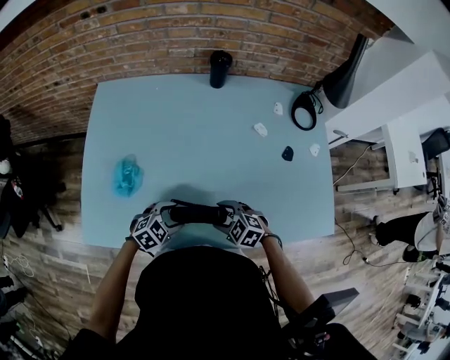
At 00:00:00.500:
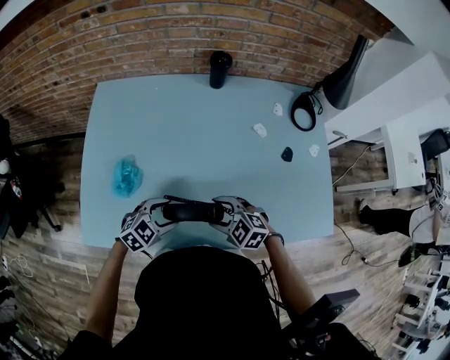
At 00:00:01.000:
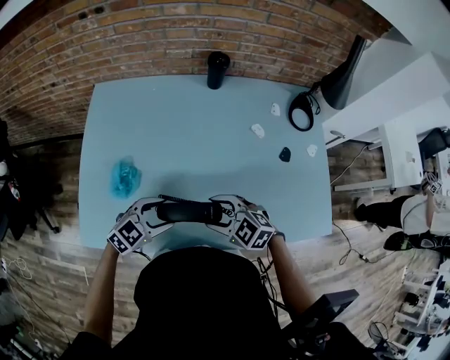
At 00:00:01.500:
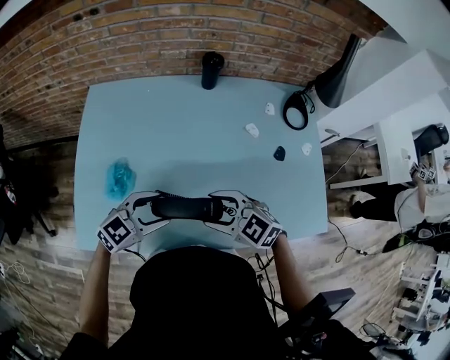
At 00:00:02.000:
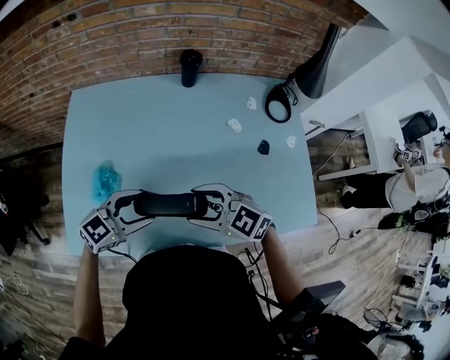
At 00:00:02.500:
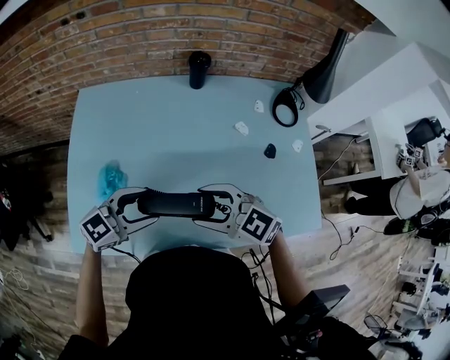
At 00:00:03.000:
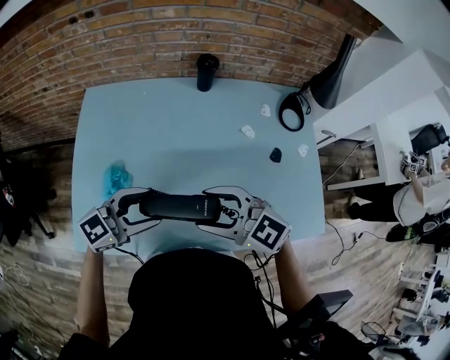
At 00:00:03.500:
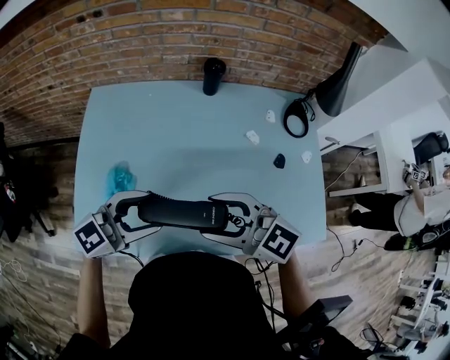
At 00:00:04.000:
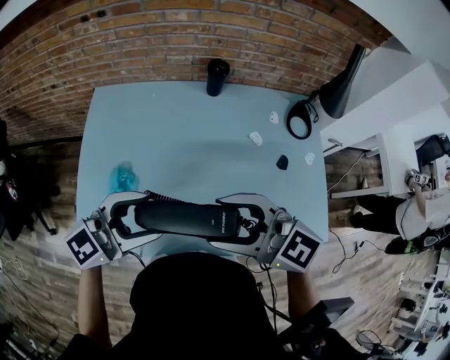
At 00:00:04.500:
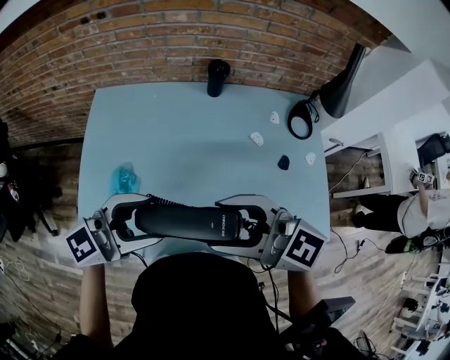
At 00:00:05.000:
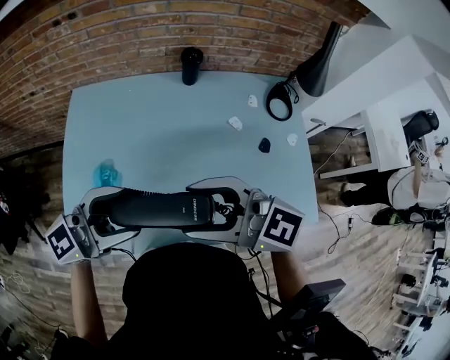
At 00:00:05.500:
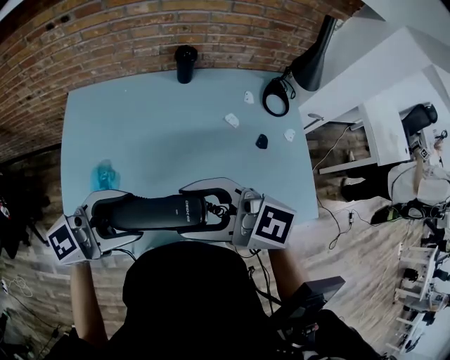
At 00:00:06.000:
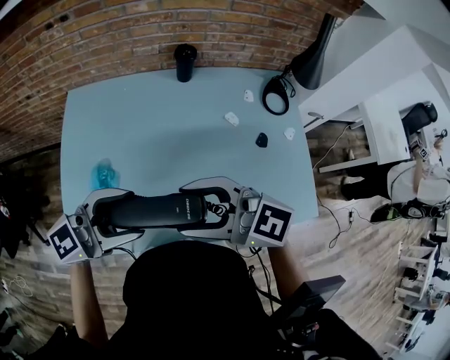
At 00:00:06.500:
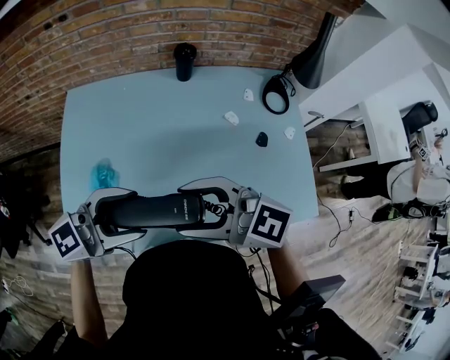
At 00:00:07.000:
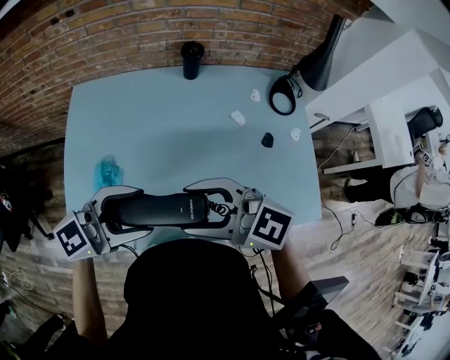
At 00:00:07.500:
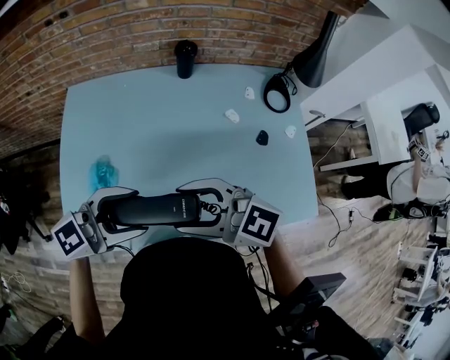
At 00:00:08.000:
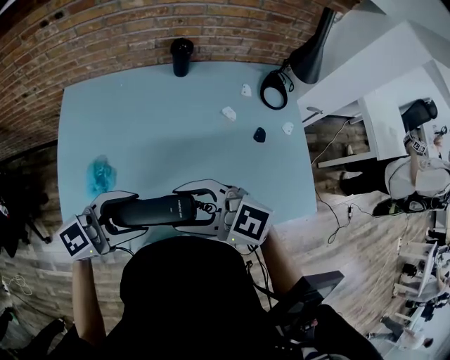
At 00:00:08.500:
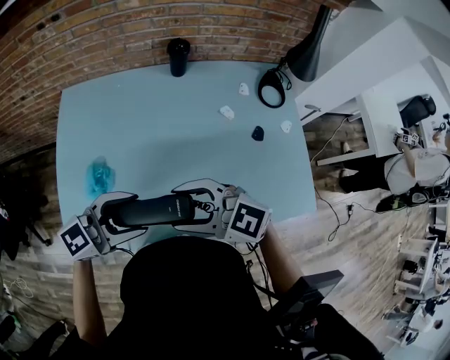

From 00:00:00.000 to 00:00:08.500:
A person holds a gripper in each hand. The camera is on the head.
From 00:00:00.000 to 00:00:02.000: The grippers both shift upward by some 20 cm. The left gripper rotates about 30 degrees. Meanwhile the right gripper rotates roughly 20 degrees.
From 00:00:02.000 to 00:00:04.000: The two grippers go some 15 cm upward. The left gripper changes its angle by roughly 20 degrees, while the right gripper rotates some 20 degrees.
From 00:00:04.000 to 00:00:06.500: There are only small adjustments of the grippers.
From 00:00:06.500 to 00:00:08.500: Both grippers travel together downward, some 5 cm.

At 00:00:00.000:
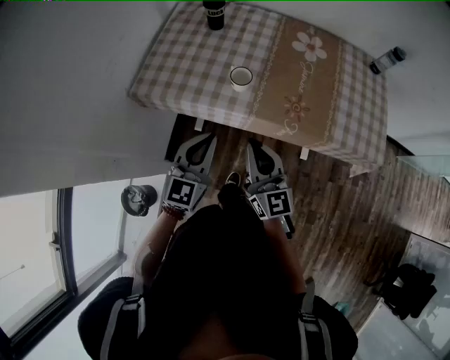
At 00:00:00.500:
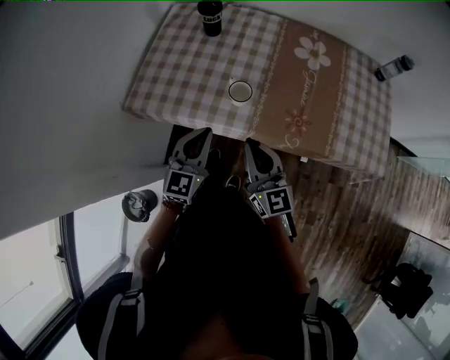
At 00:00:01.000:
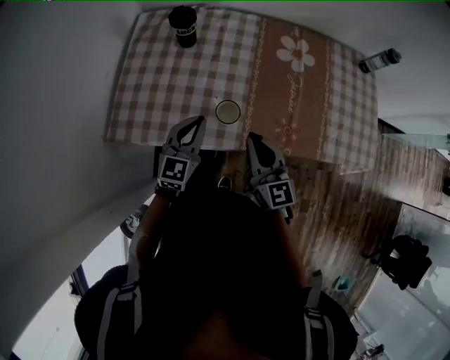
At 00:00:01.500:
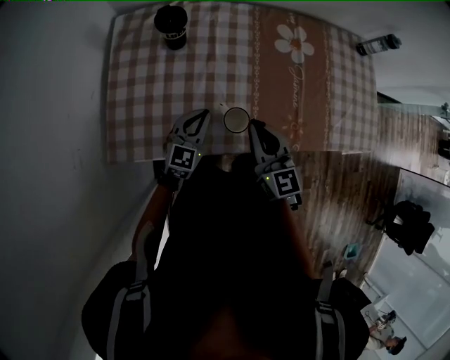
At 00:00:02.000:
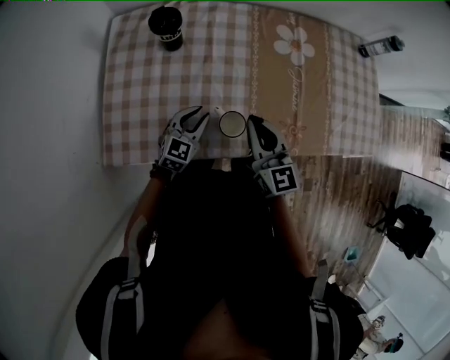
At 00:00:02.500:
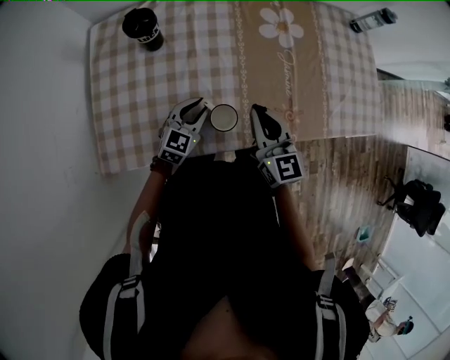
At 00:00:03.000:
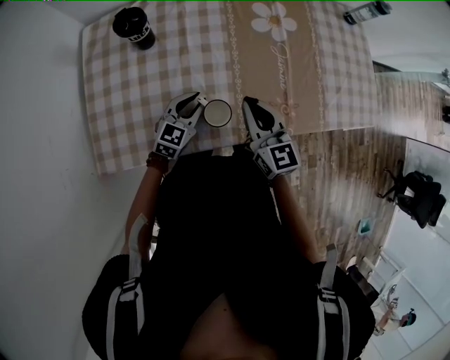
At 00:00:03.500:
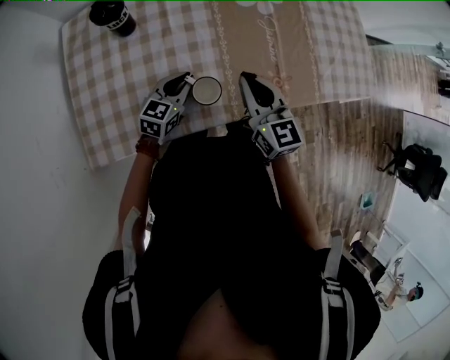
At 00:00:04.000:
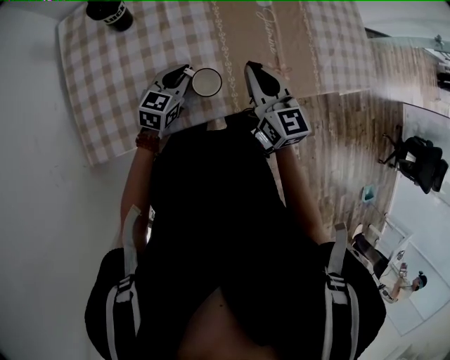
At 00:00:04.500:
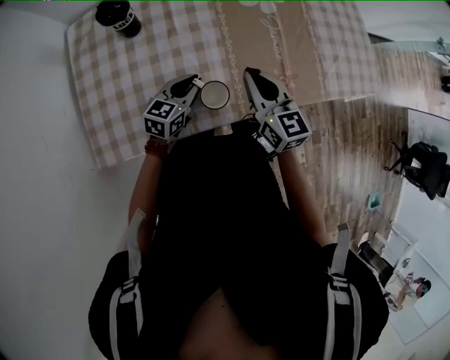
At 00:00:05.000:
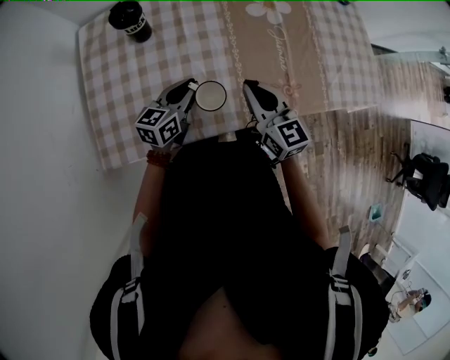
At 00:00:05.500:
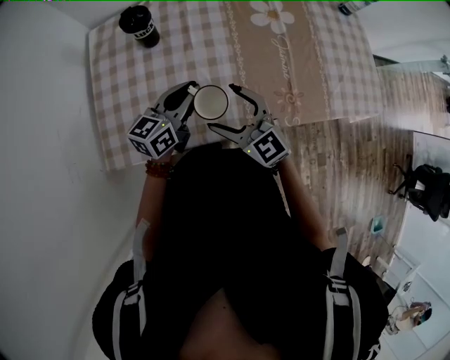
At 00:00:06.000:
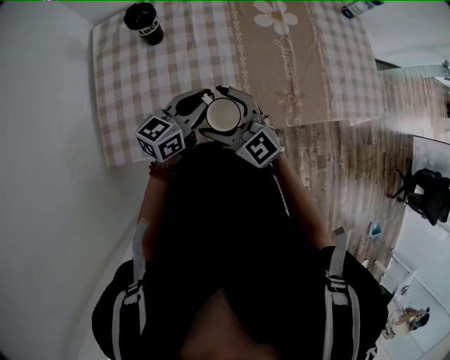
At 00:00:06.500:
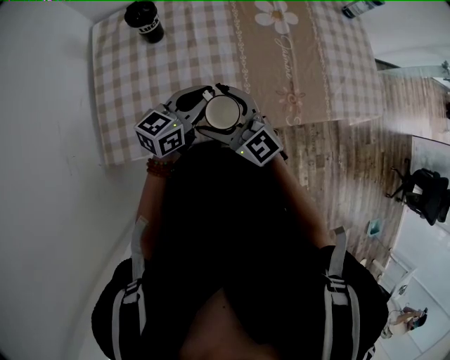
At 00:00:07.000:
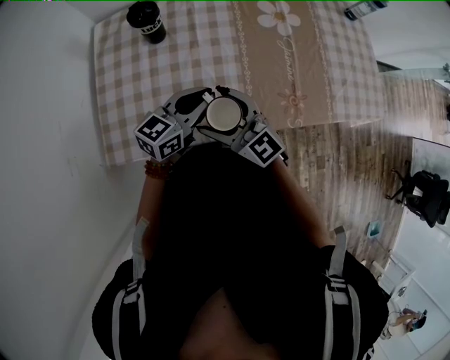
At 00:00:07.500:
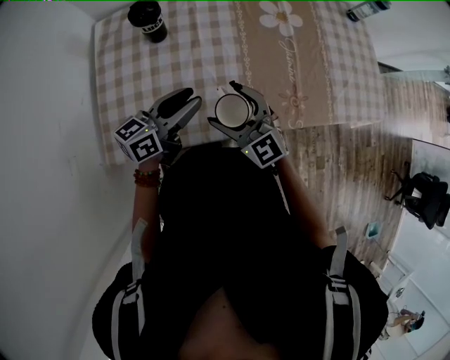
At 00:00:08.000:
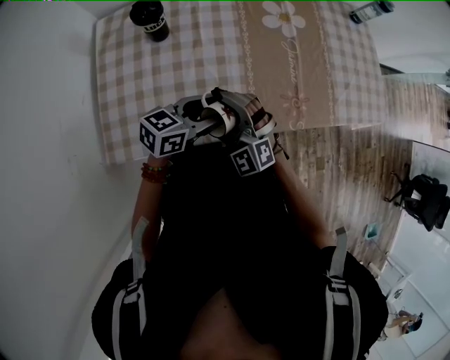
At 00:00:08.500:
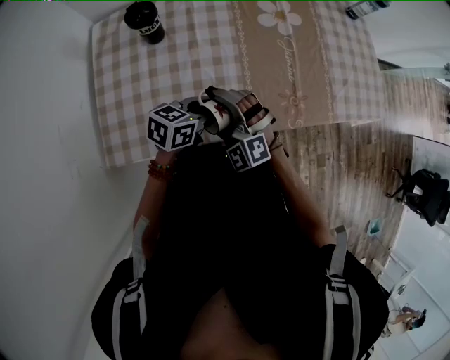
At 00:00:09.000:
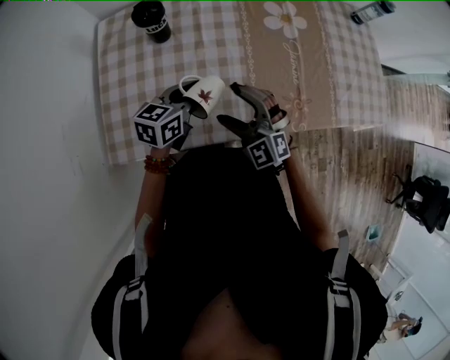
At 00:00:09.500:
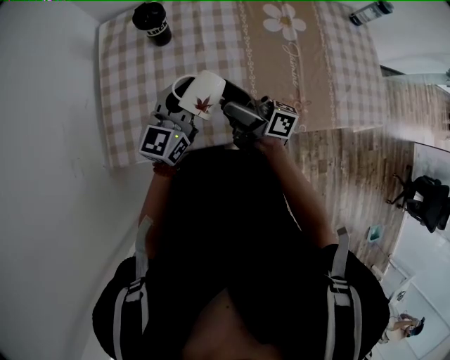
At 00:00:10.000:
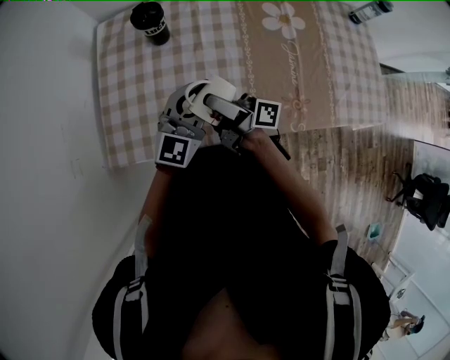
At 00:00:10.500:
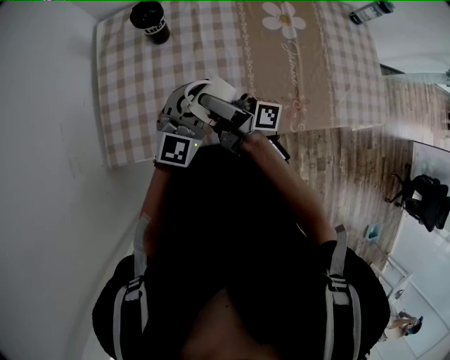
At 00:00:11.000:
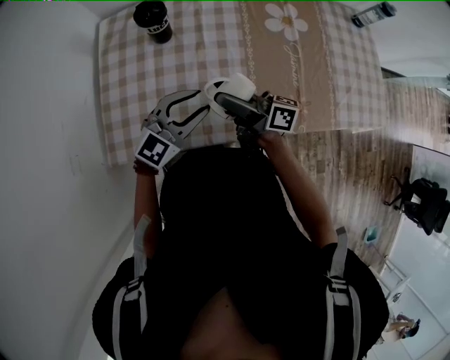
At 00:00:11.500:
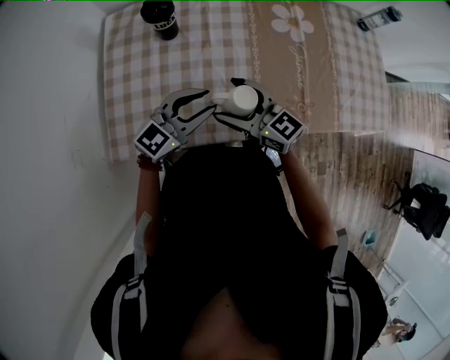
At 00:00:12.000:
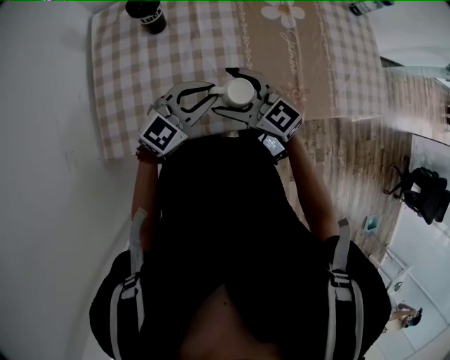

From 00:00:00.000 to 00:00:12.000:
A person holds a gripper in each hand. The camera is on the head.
From 00:00:00.000 to 00:00:02.000: The right gripper goes approximately 30 cm forward, while the left gripper travels forward and downward by approximately 35 cm, turns by some 30 degrees, and opens up.
From 00:00:02.000 to 00:00:04.000: The right gripper goes about 5 cm to the right; the left gripper changes place by some 5 cm.
From 00:00:04.000 to 00:00:06.000: The right gripper goes roughly 15 cm to the left and backward, changes its angle by roughly 40 degrees, and opens its fingers. Meanwhile the left gripper is displaced upward by about 10 cm, and rotates some 20 degrees.
From 00:00:06.000 to 00:00:08.000: The left gripper opens. The right gripper turns by approximately 30 degrees.
From 00:00:08.000 to 00:00:10.000: The left gripper shifts some 10 cm upward and forward, swivels roughly 50 degrees, and closes its fingers, while the right gripper heads upward, covering some 5 cm, and twists about 120 degrees clockwise, seen from behind.
From 00:00:10.000 to 00:00:12.000: The right gripper moves approximately 5 cm, and rolls counterclockwise, seen from behind, by roughly 70 degrees; the left gripper shifts approximately 5 cm downward, turns by roughly 30 degrees, and opens and closes again.

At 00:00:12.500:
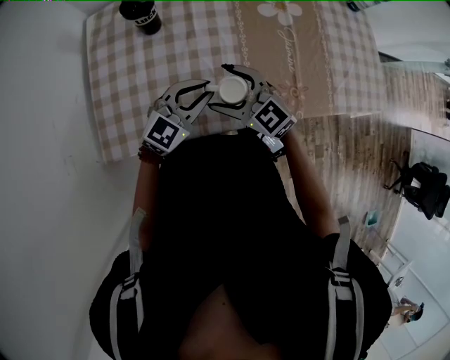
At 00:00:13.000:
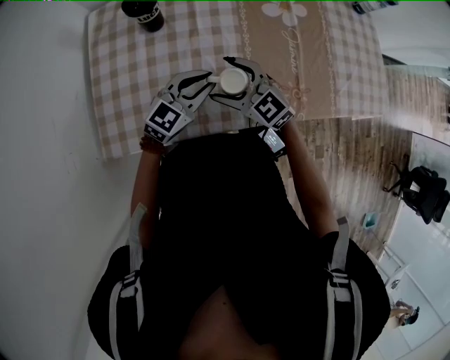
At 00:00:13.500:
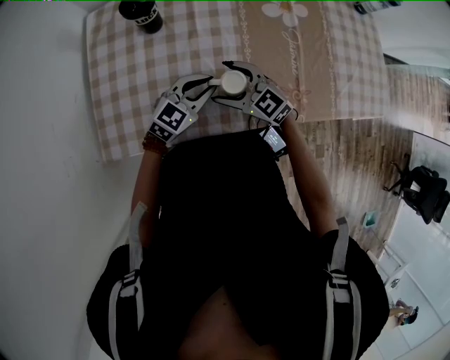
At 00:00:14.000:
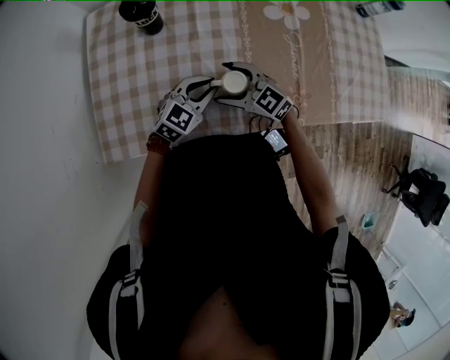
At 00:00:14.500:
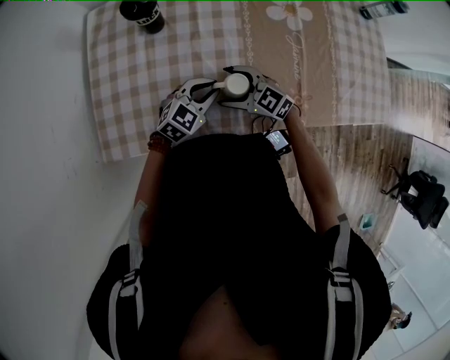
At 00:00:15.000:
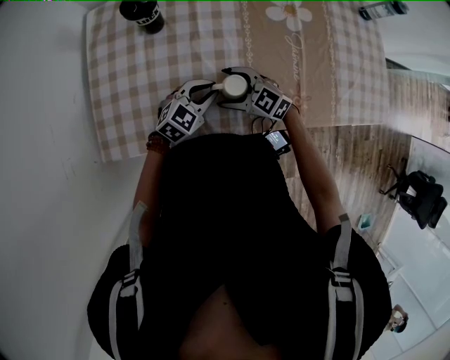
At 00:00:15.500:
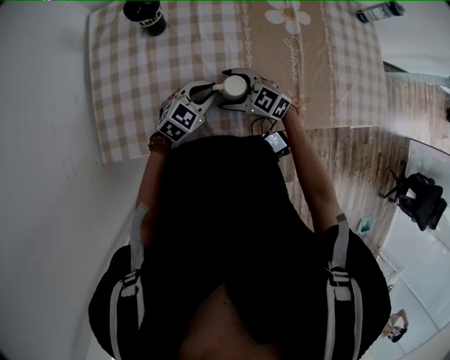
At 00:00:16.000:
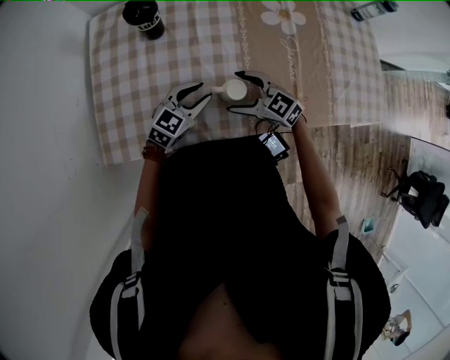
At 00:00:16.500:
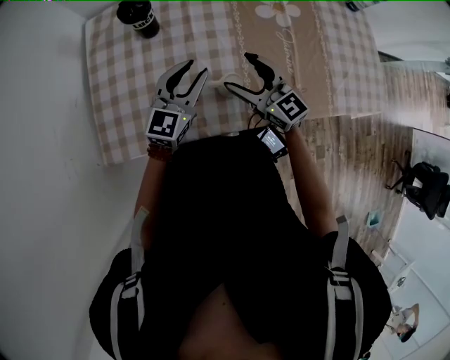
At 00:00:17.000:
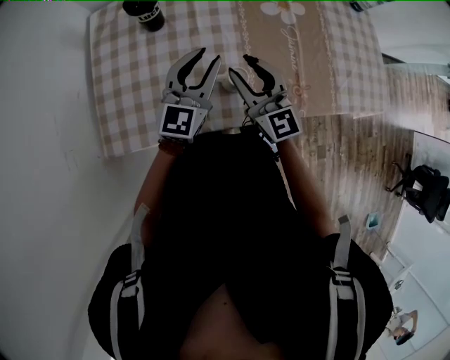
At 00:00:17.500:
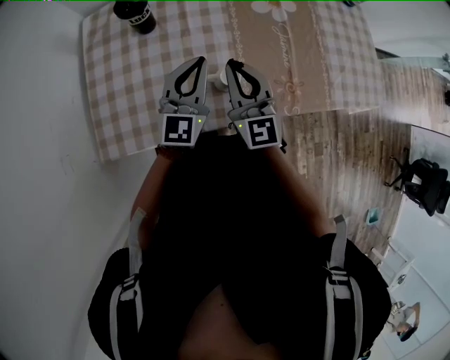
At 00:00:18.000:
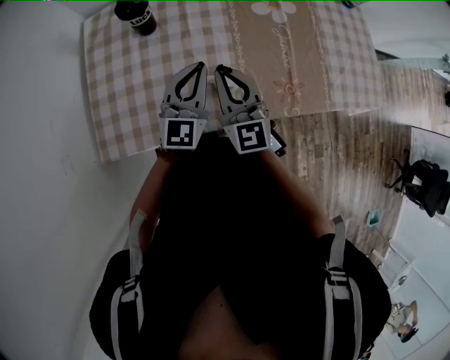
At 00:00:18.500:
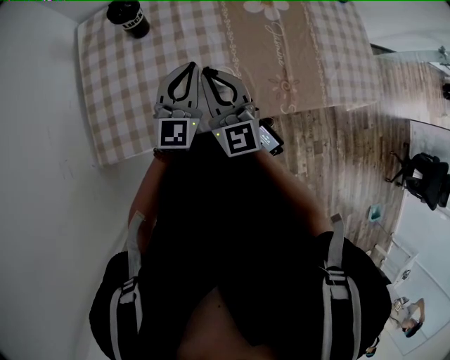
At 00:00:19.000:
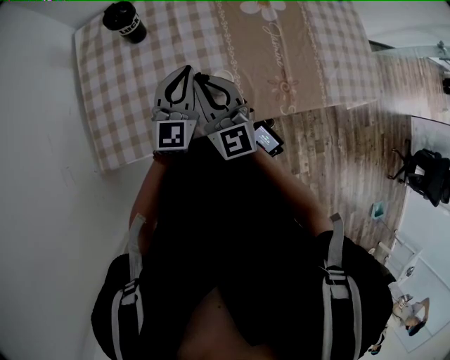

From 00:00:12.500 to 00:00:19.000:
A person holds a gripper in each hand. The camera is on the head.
From 00:00:12.500 to 00:00:14.500: The two grippers go some 10 cm downward.
From 00:00:14.500 to 00:00:17.000: Both grippers travel together upward, some 15 cm. The left gripper rotates about 40 degrees, while the right gripper swivels about 50 degrees, and closes its fingers.
From 00:00:17.000 to 00:00:19.000: The left gripper closes. The right gripper goes approximately 5 cm to the left.
